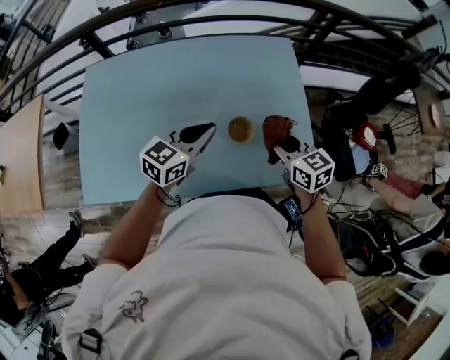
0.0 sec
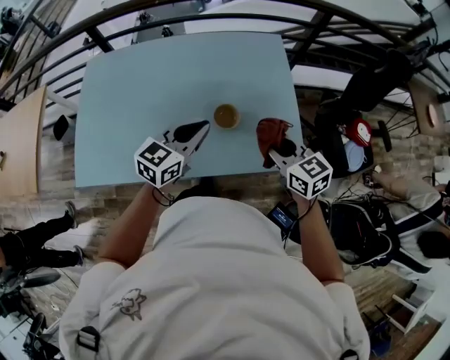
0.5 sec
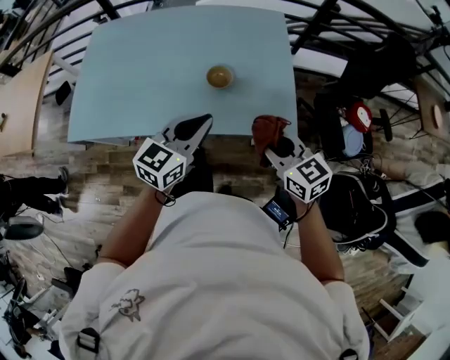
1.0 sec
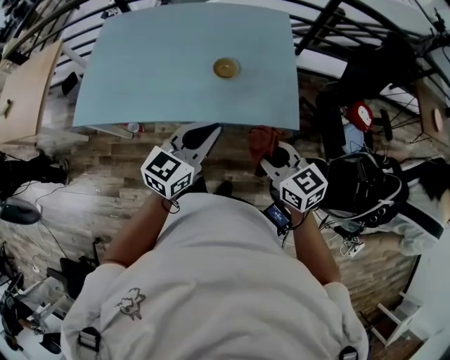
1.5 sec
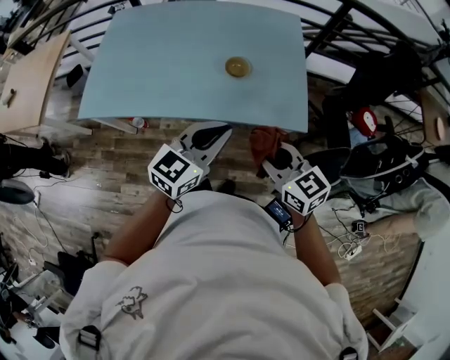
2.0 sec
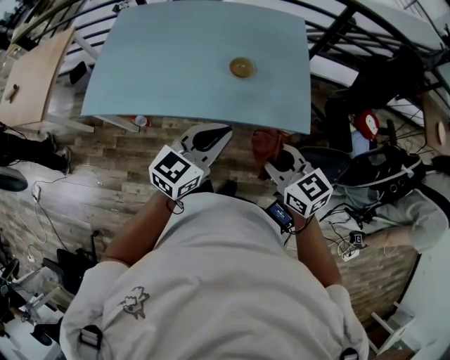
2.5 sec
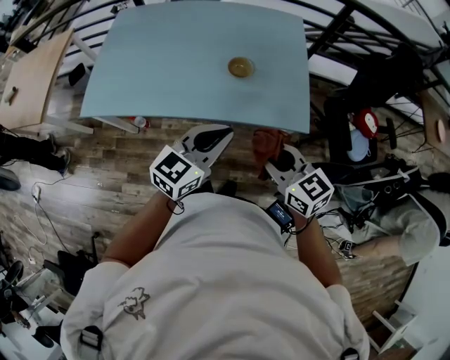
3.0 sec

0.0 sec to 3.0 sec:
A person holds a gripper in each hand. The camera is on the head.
0.0 sec to 1.5 sec: Both grippers move backward, some 30 cm.
1.5 sec to 3.0 sec: The grippers stay close to where they were, moving slightly.

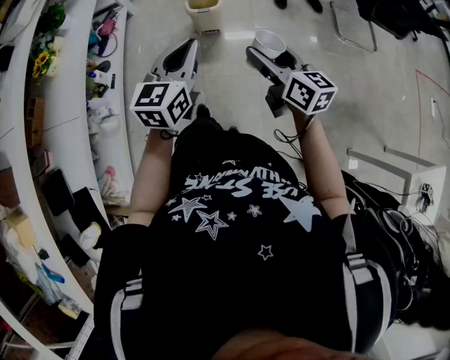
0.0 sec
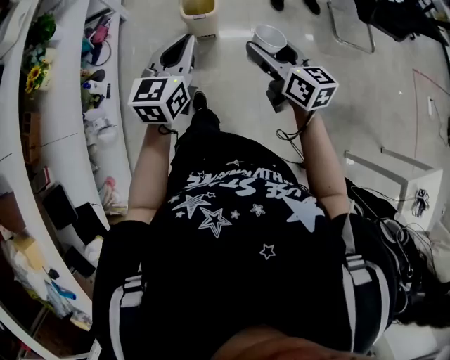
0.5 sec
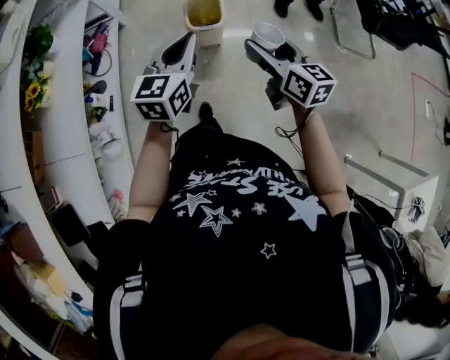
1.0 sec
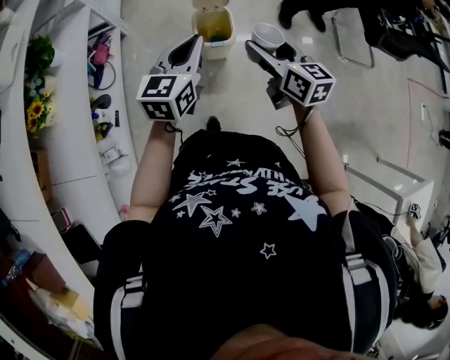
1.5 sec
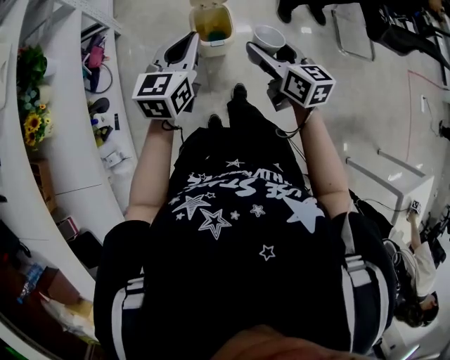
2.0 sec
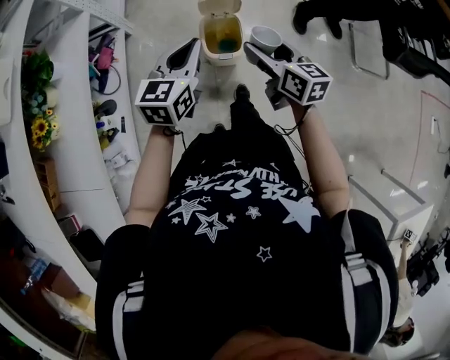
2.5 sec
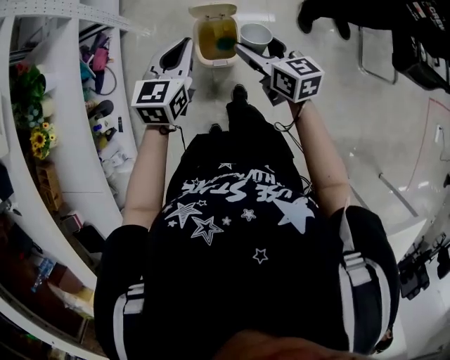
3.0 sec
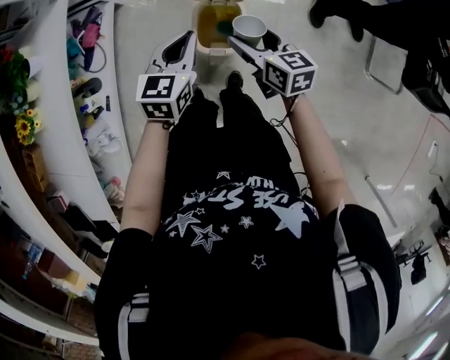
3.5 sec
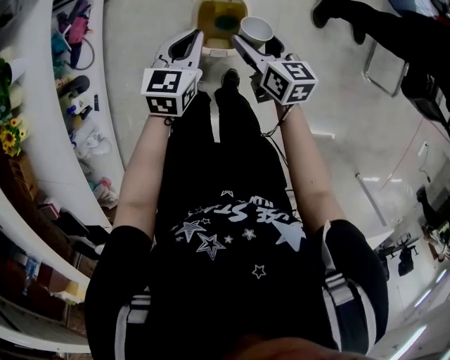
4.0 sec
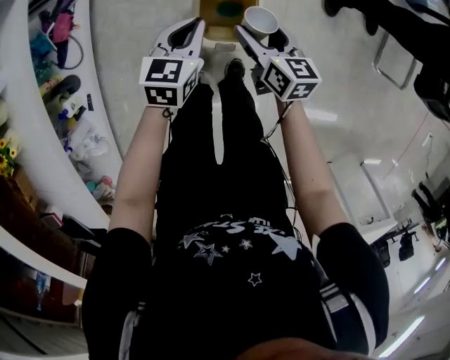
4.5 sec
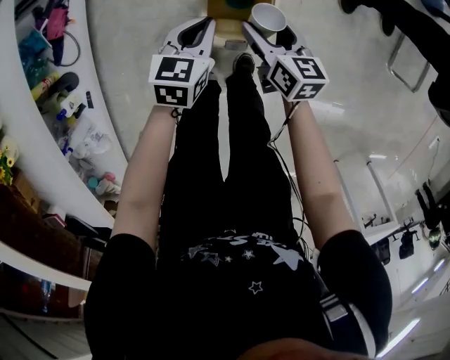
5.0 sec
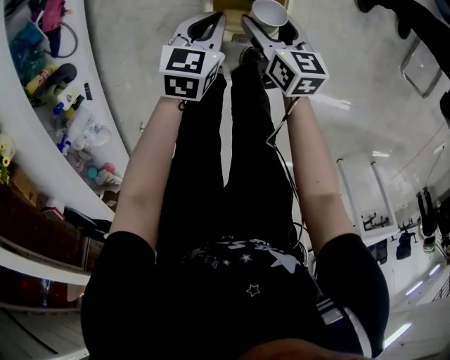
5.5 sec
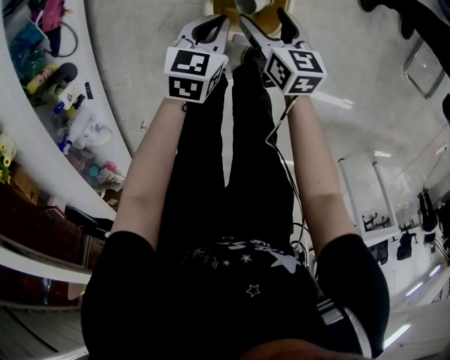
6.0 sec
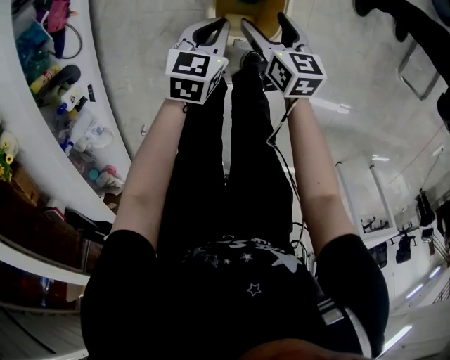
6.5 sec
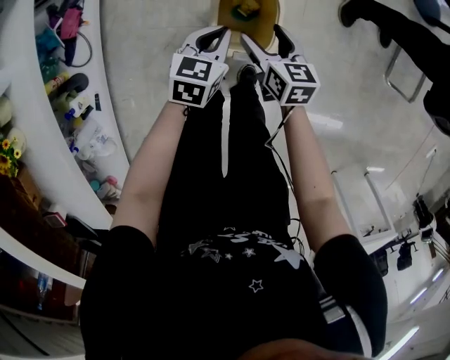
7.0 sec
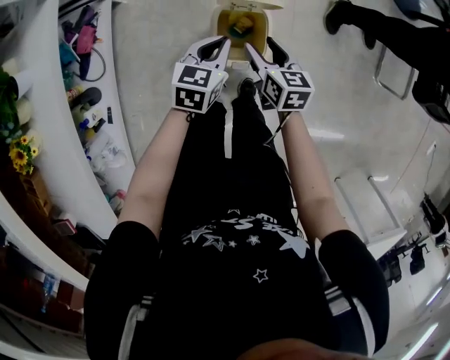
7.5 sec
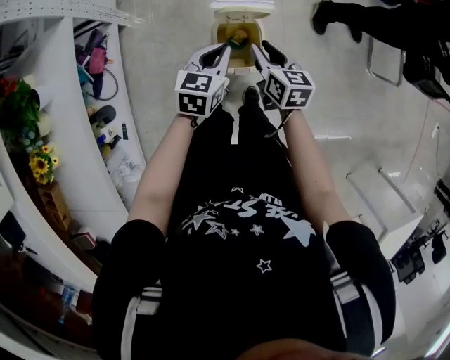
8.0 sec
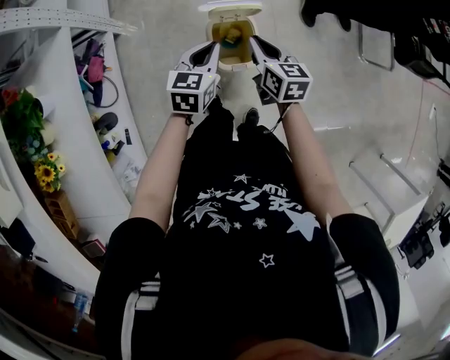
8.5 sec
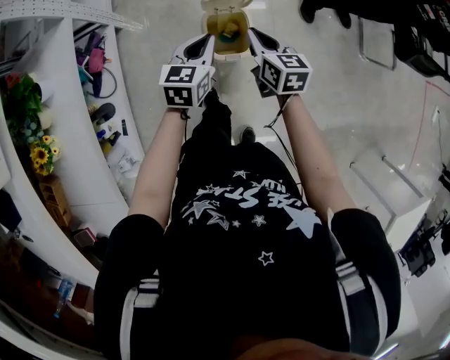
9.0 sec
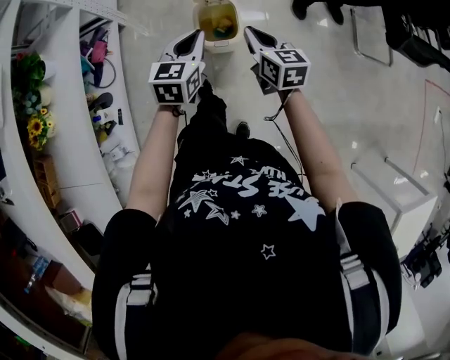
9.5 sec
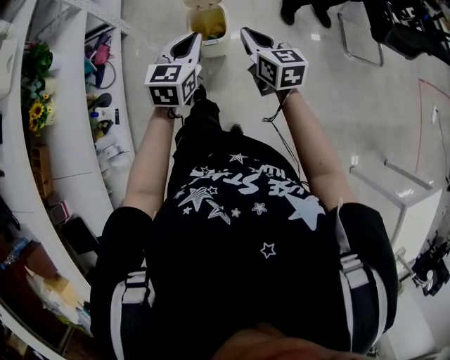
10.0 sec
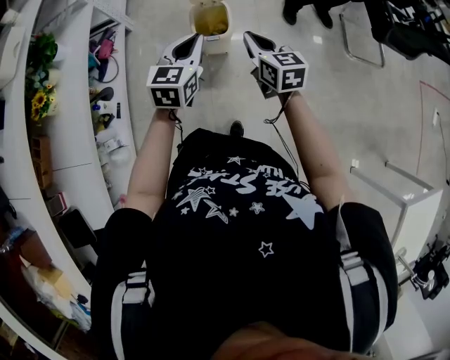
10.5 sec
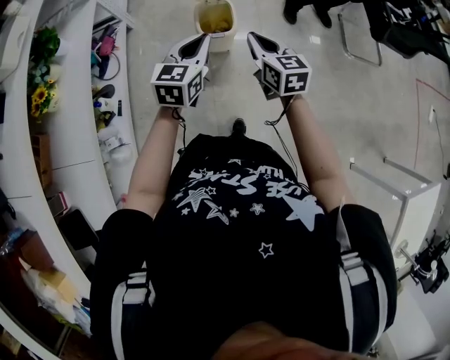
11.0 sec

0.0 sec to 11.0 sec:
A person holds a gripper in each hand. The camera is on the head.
0.0 sec to 2.0 sec: The two grippers go approximately 35 cm forward.
2.0 sec to 3.5 sec: The left gripper moves forward, downward and to the right, approximately 25 cm, and turns by roughly 20 degrees; the right gripper is displaced forward and downward by roughly 25 cm.
3.5 sec to 5.5 sec: The grippers both shift downward by some 30 cm.
5.5 sec to 7.5 sec: The two grippers go approximately 15 cm upward.
7.5 sec to 9.0 sec: The right gripper is displaced upward by roughly 15 cm, and closes up; the left gripper goes approximately 15 cm upward and backward.
9.0 sec to 11.0 sec: The grippers both shift backward and upward by some 30 cm.

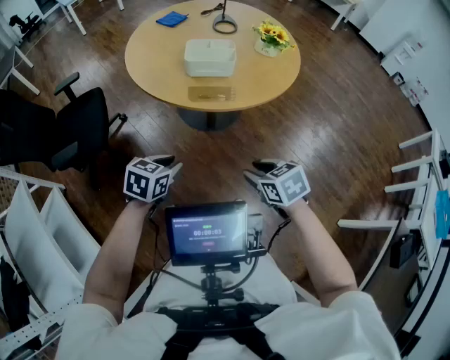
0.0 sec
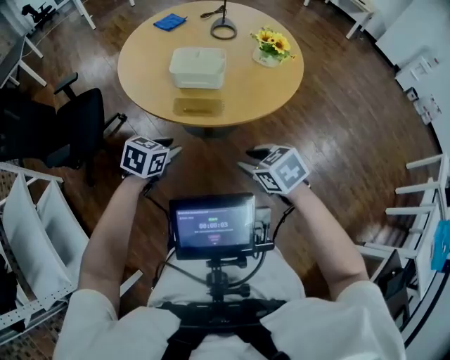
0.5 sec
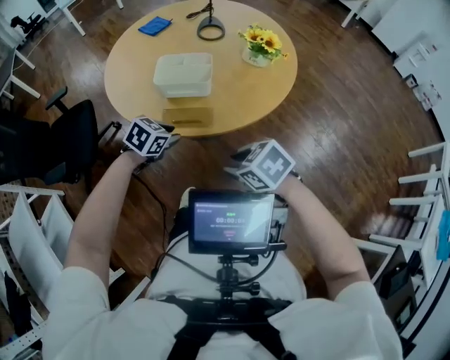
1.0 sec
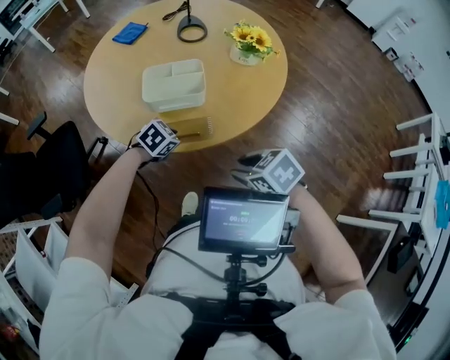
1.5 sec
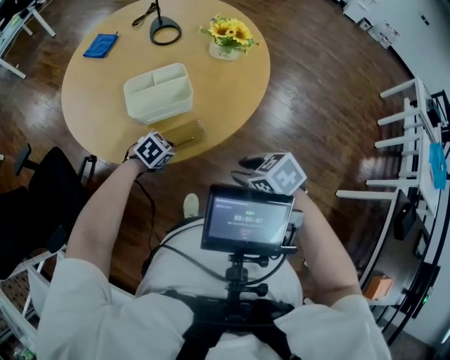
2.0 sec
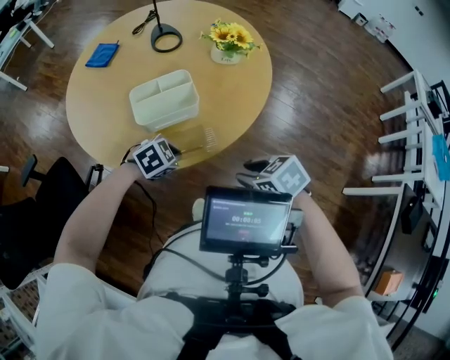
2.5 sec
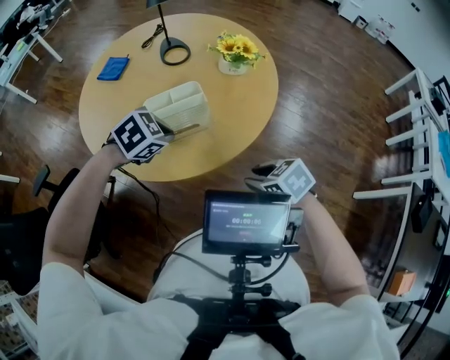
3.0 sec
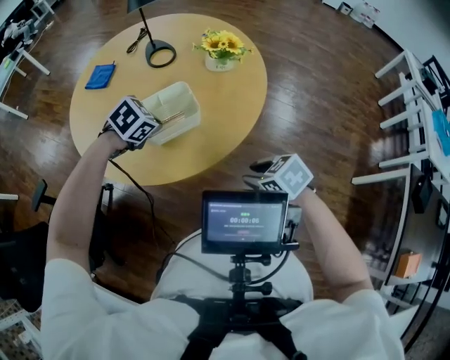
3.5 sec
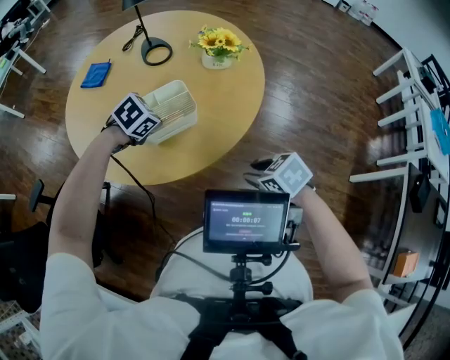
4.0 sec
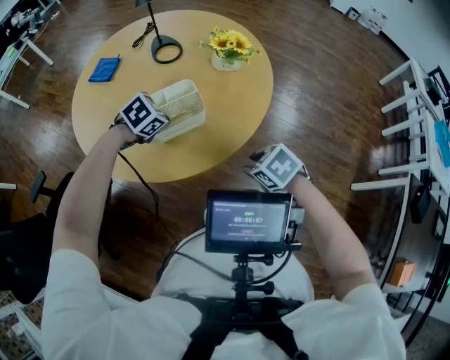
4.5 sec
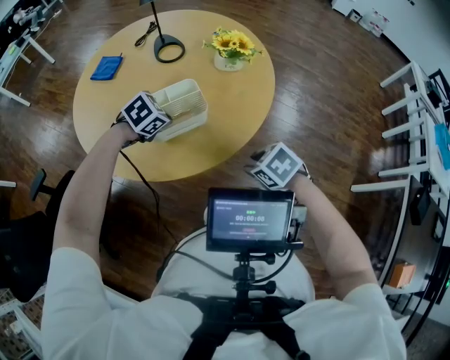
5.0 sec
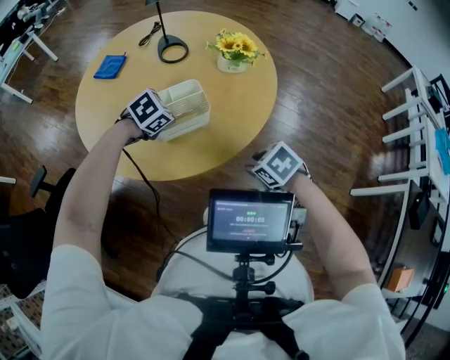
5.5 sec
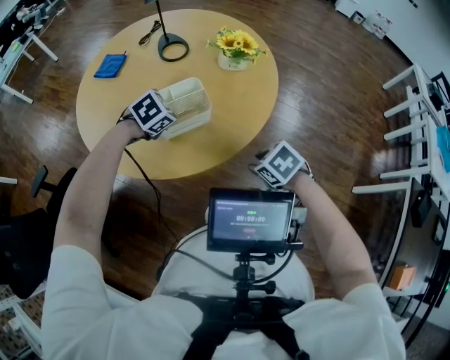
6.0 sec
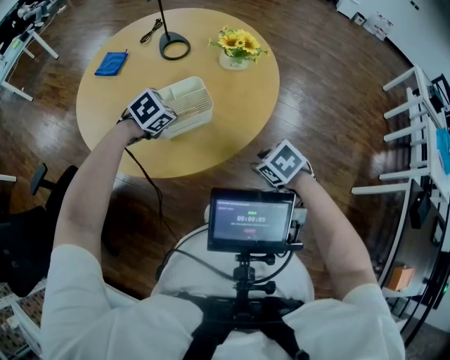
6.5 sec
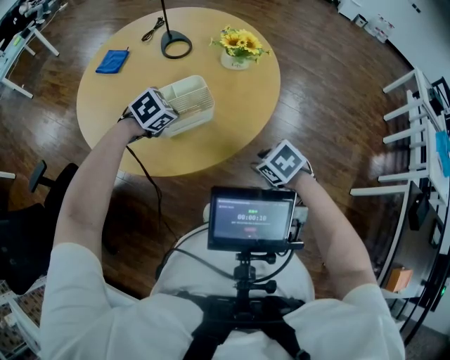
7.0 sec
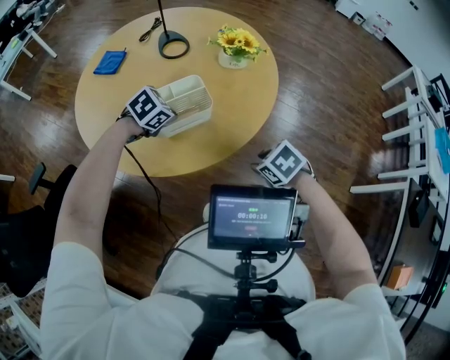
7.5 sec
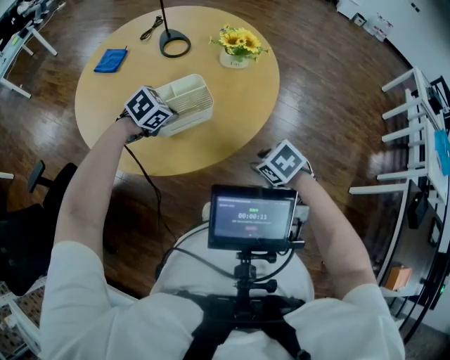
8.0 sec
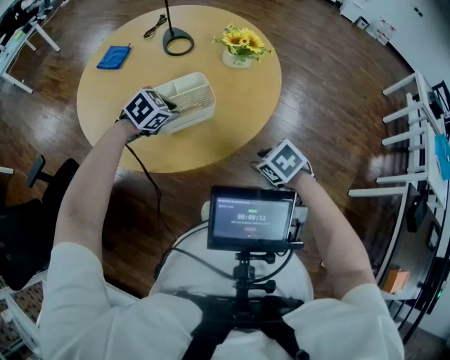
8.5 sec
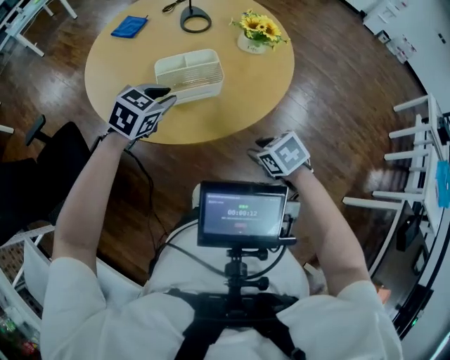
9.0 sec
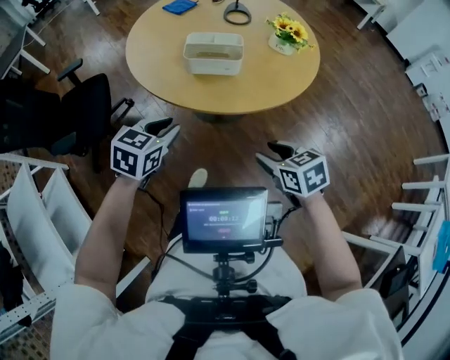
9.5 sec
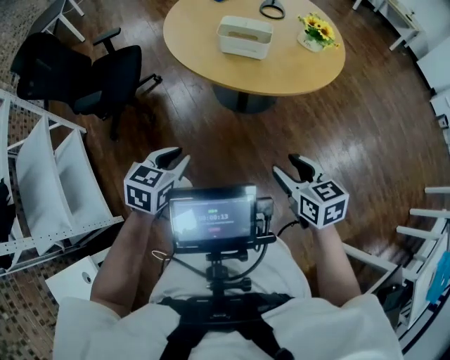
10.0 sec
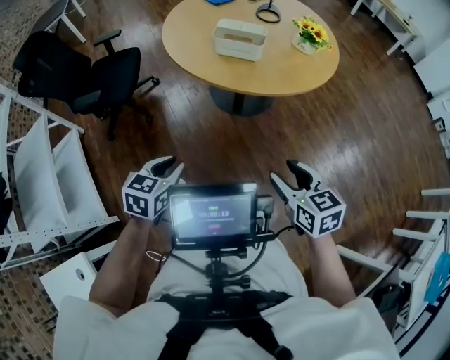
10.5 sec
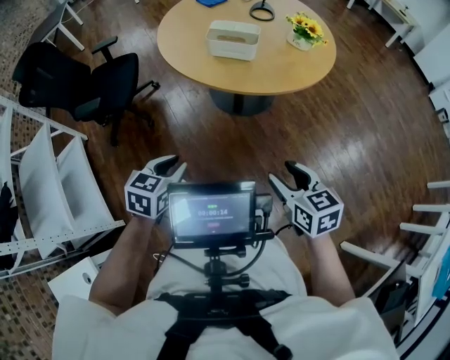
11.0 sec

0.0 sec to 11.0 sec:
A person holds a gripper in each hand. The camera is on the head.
0.0 sec to 2.0 sec: The right gripper changes place by about 20 cm, while the left gripper ends up roughly 35 cm from where it was, and swivels approximately 50 degrees.
2.0 sec to 3.5 sec: The left gripper travels upward by approximately 15 cm.
3.5 sec to 7.5 sec: The grippers move only a little.
7.5 sec to 9.0 sec: The left gripper goes roughly 10 cm upward, turns by about 30 degrees, and opens up.
9.0 sec to 11.0 sec: The right gripper shifts some 25 cm backward, and tips its fingers upward by approximately 30 degrees, while the left gripper goes approximately 40 cm backward, and turns by roughly 50 degrees.

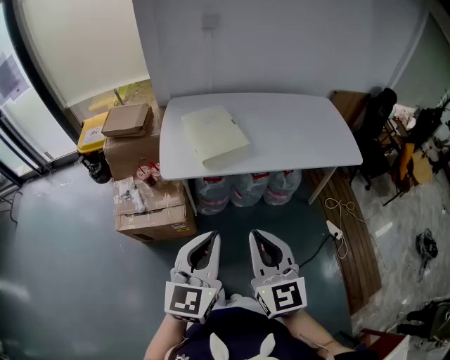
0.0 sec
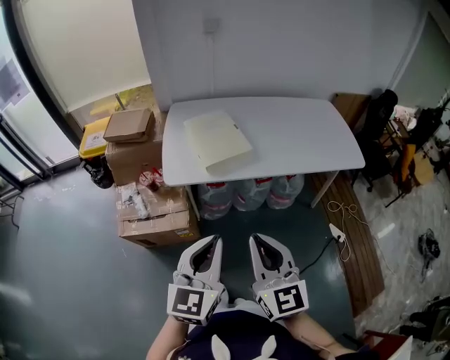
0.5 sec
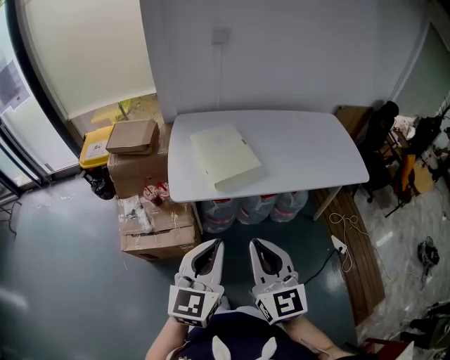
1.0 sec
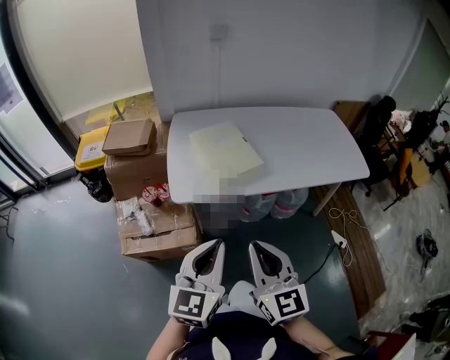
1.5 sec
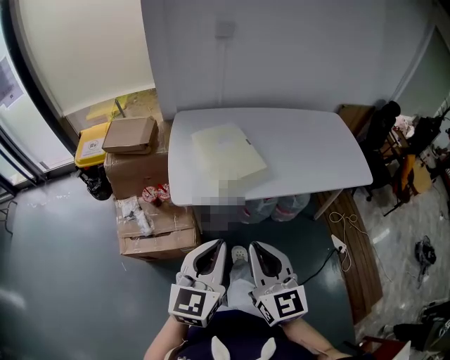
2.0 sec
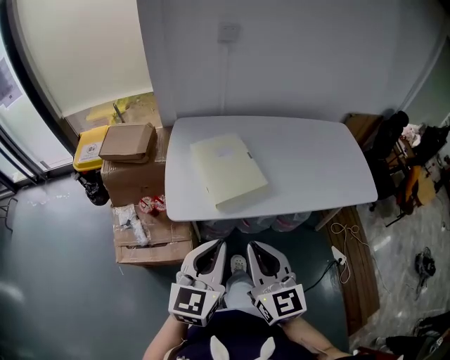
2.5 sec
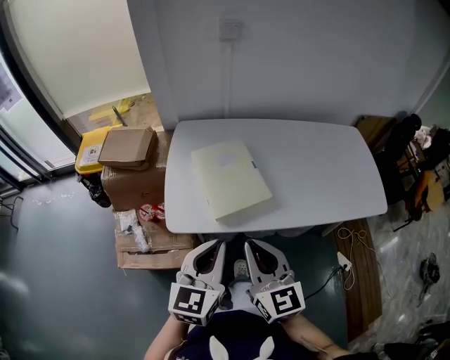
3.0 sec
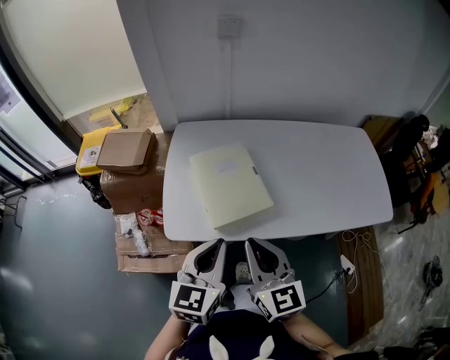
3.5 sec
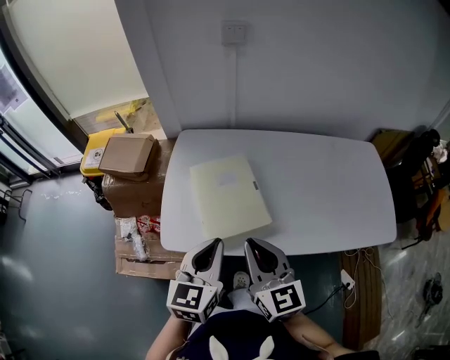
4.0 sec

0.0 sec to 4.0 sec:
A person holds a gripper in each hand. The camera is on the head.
0.0 sec to 2.0 sec: Both grippers move forward and to the left, about 10 cm.
2.0 sec to 4.0 sec: Both grippers travel together forward, some 25 cm.
